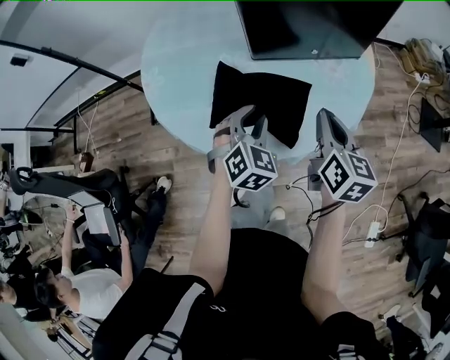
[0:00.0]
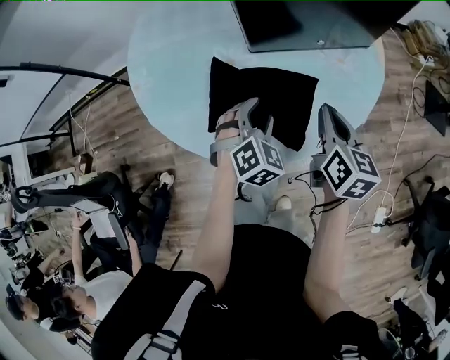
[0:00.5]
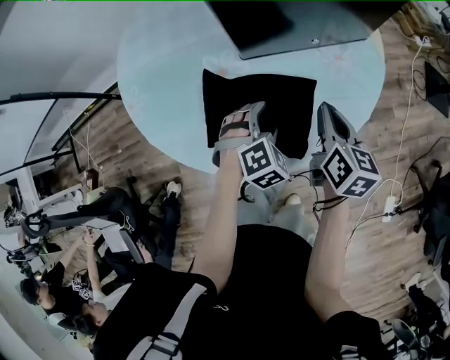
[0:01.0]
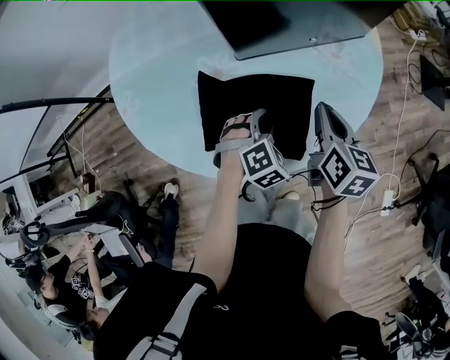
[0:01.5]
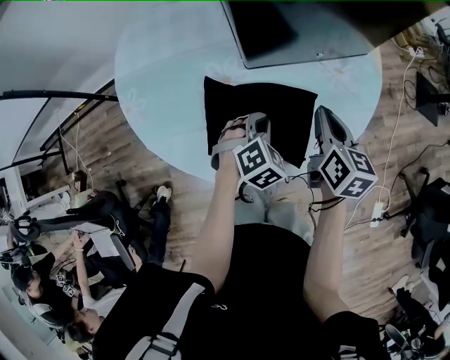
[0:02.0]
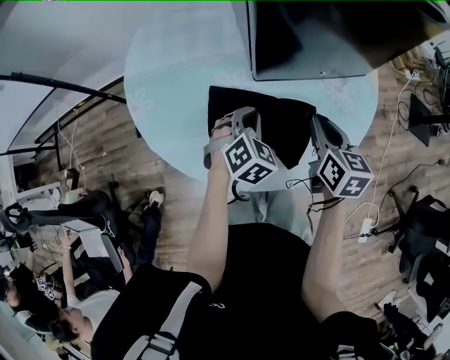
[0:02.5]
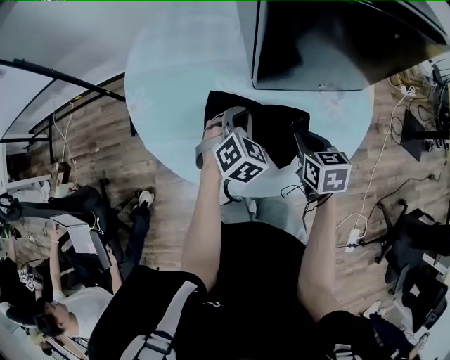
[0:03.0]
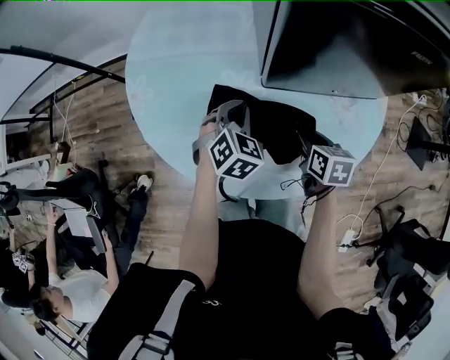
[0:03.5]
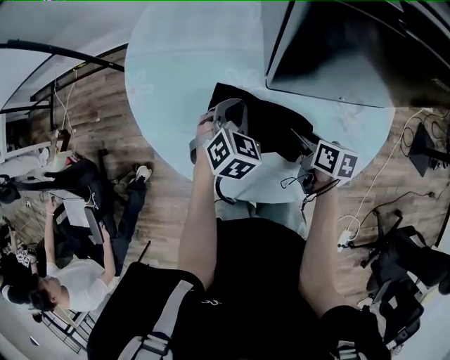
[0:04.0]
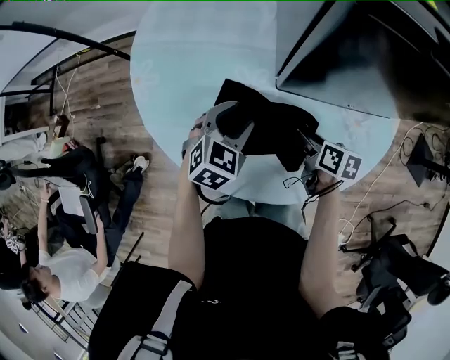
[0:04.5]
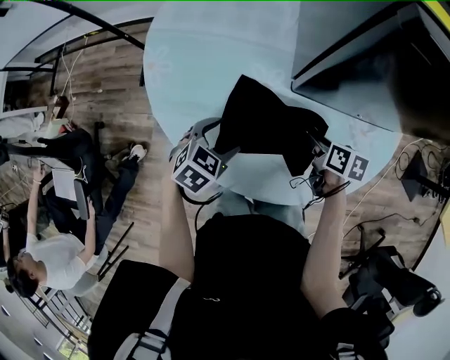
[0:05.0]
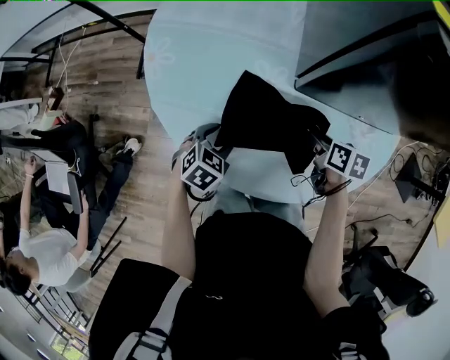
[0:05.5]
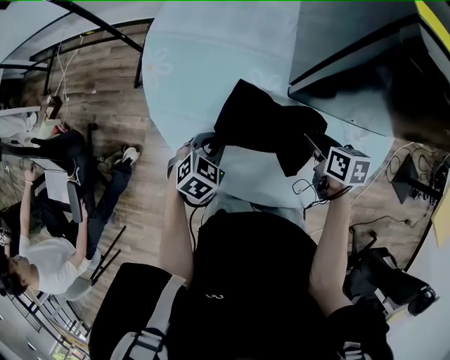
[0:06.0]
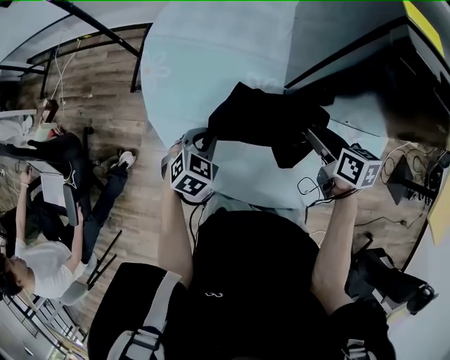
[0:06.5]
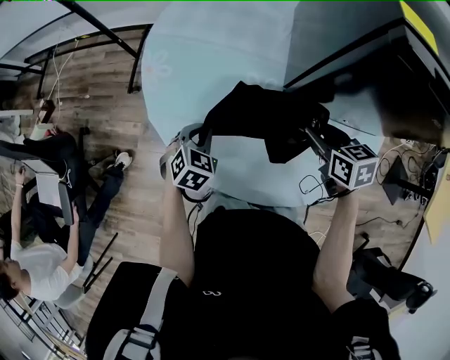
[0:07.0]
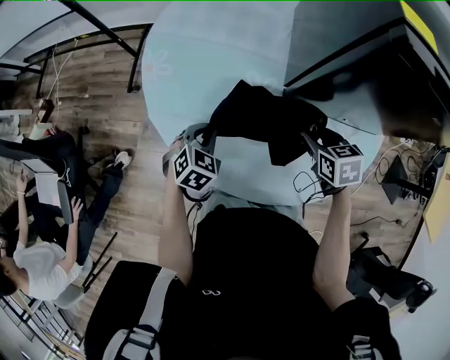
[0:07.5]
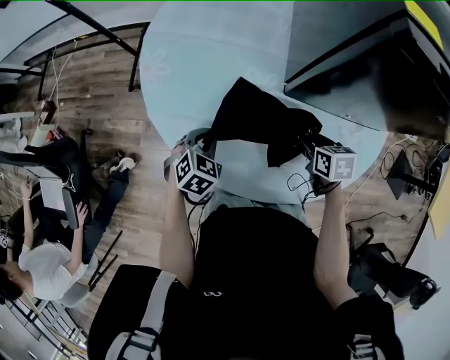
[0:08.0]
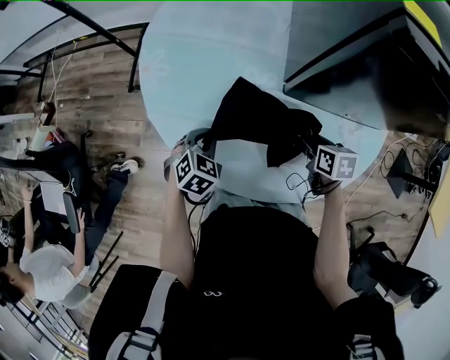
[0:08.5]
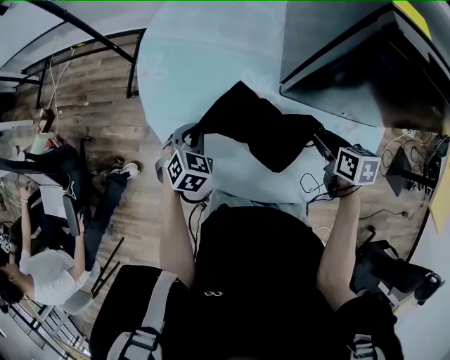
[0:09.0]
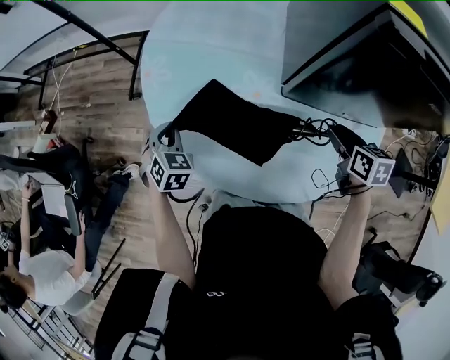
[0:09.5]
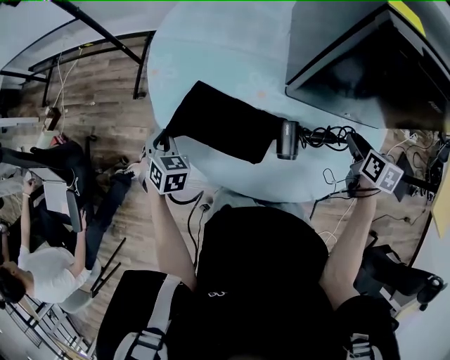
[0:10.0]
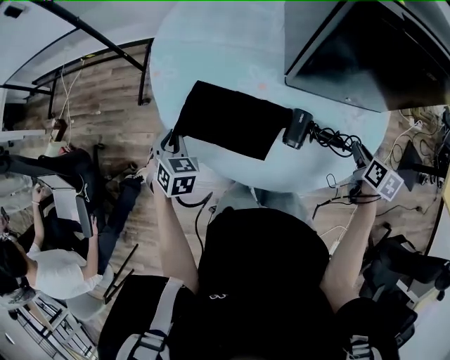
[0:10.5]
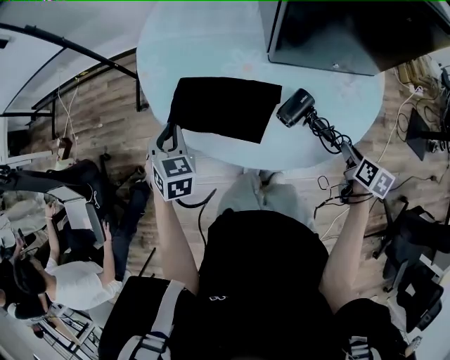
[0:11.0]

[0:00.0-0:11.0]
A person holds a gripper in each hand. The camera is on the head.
0:00.0 to 0:02.0: The left gripper is displaced downward and forward by approximately 10 cm, changes its angle by roughly 20 degrees, and closes up. Meanwhile the right gripper is displaced forward and downward by approximately 10 cm.
0:02.0 to 0:03.5: The left gripper goes about 10 cm forward and to the left, and rotates roughly 30 degrees. The right gripper goes approximately 10 cm downward, turns by about 30 degrees, and opens its fingers.
0:03.5 to 0:05.5: The left gripper is displaced to the left, backward and downward by roughly 20 cm, swivels about 30 degrees, and opens up.
0:05.5 to 0:07.5: The left gripper ends up approximately 5 cm from where it was, and closes its fingers. The right gripper is displaced upward by roughly 5 cm, and rotates roughly 30 degrees.
0:07.5 to 0:09.0: The right gripper swivels some 20 degrees.
0:09.0 to 0:11.0: The right gripper goes about 20 cm backward, and turns by roughly 30 degrees. Meanwhile the left gripper is displaced upward and to the left by about 10 cm.

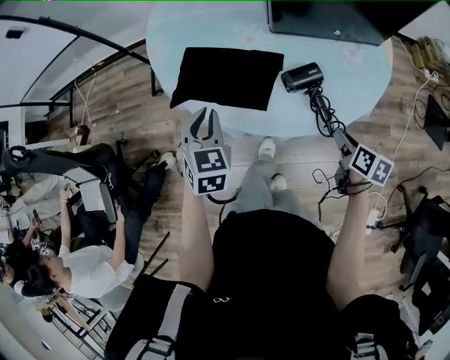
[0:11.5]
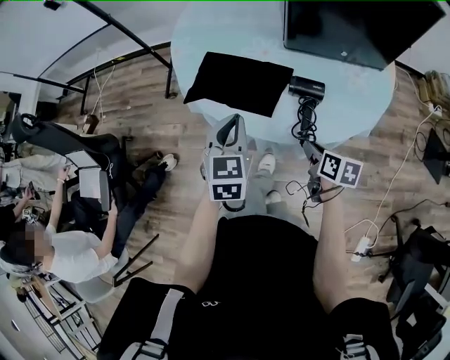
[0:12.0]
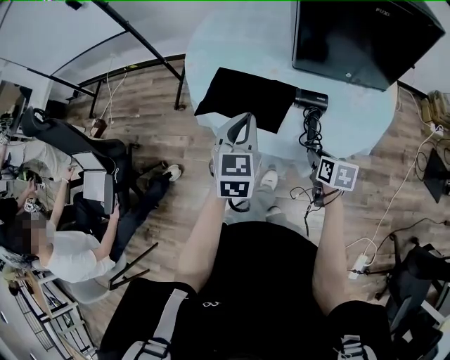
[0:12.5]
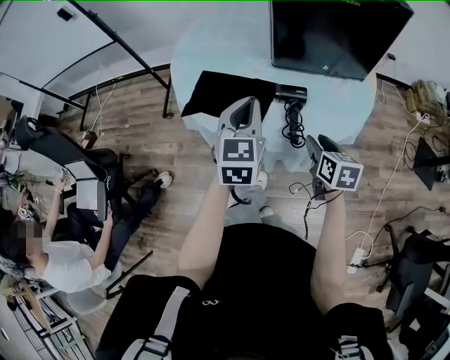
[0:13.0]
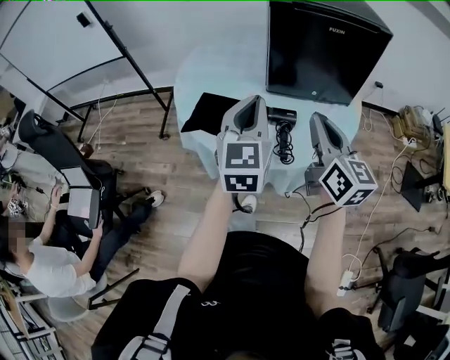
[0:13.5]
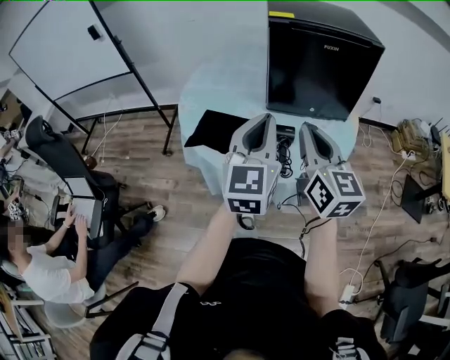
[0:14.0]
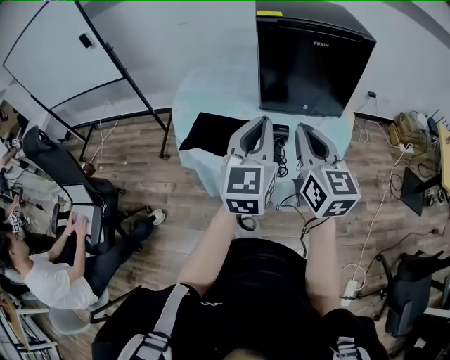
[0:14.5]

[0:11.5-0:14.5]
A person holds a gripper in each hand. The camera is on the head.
0:11.5 to 0:13.0: The right gripper goes roughly 10 cm upward and to the left, and turns by approximately 20 degrees. The left gripper is displaced upward and to the right by roughly 20 cm, and turns by some 20 degrees.
0:13.0 to 0:14.5: The left gripper shifts some 15 cm upward, to the right and backward. Meanwhile the right gripper is displaced upward by about 25 cm, tips its fingers upward by some 40 degrees, and closes its fingers.

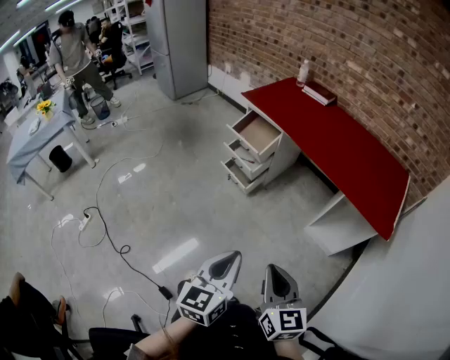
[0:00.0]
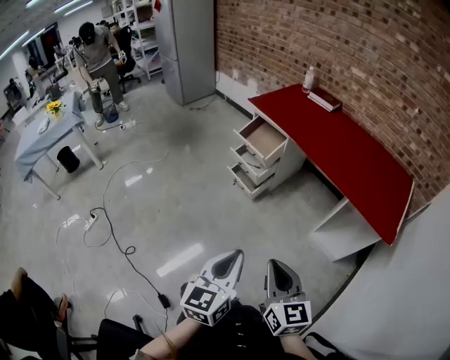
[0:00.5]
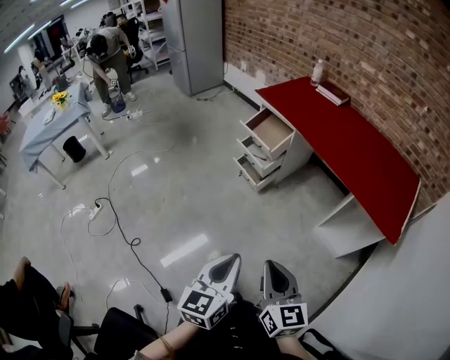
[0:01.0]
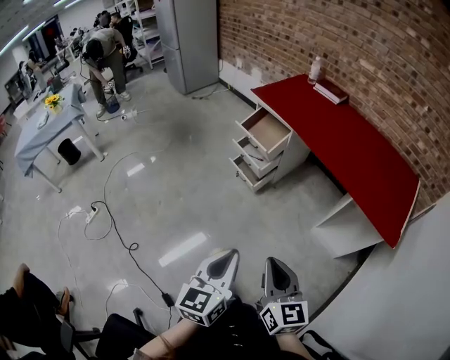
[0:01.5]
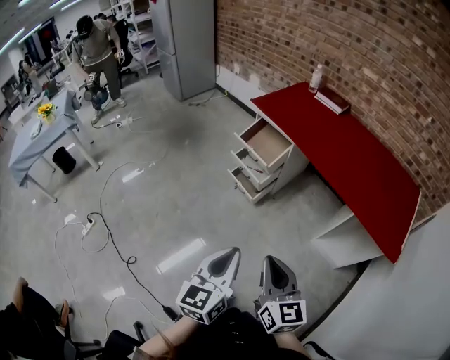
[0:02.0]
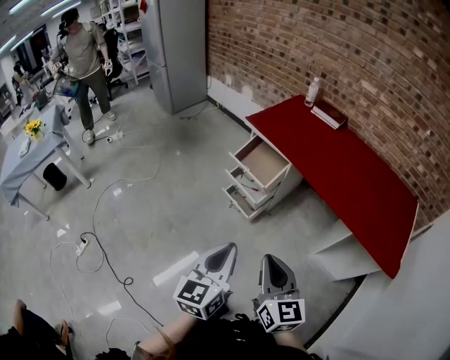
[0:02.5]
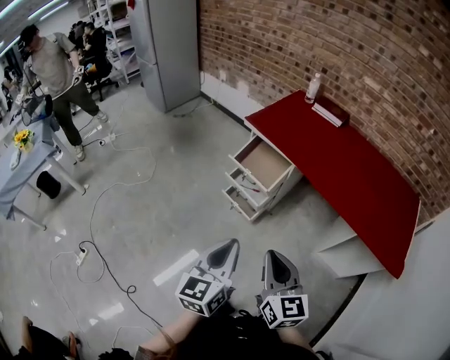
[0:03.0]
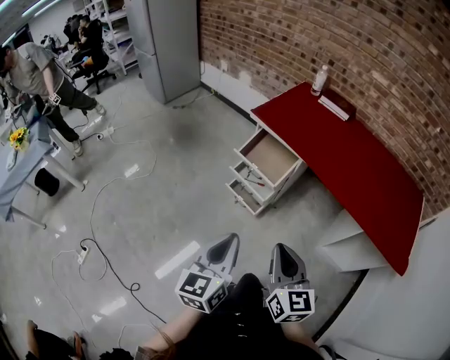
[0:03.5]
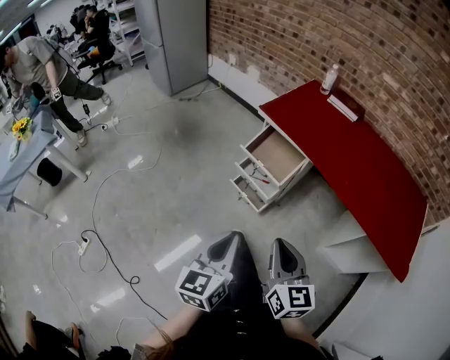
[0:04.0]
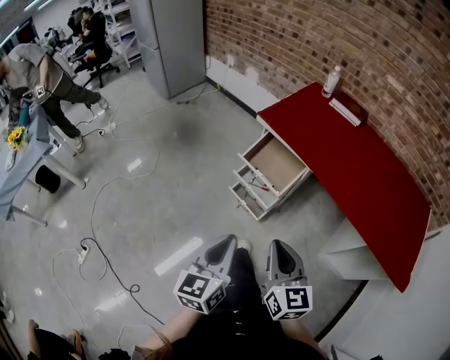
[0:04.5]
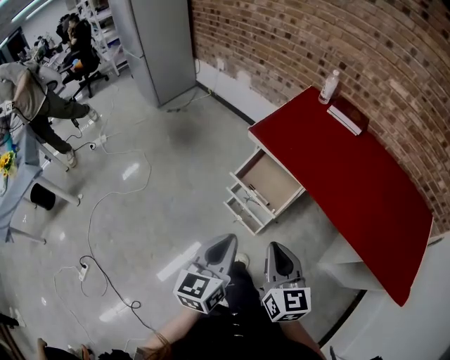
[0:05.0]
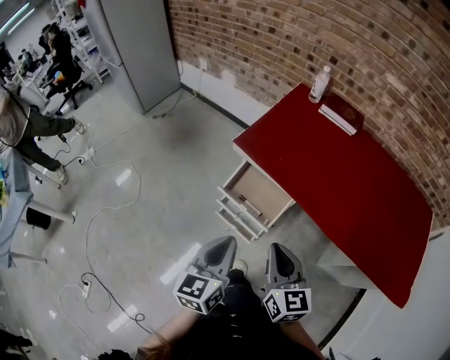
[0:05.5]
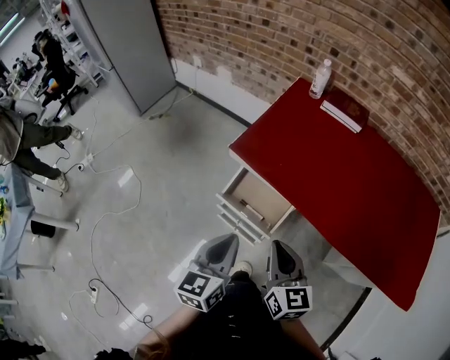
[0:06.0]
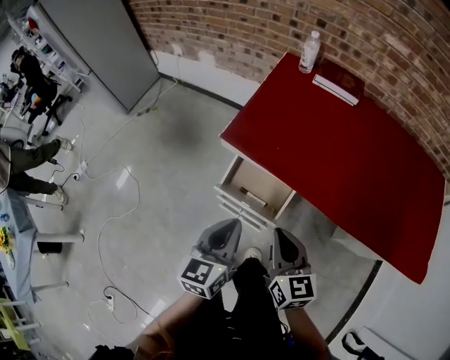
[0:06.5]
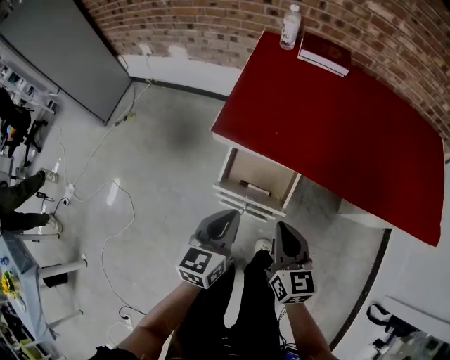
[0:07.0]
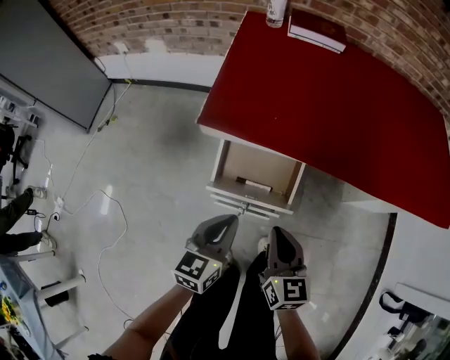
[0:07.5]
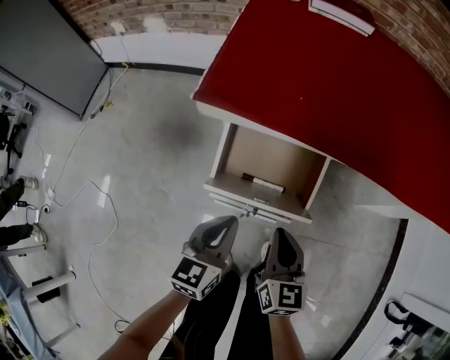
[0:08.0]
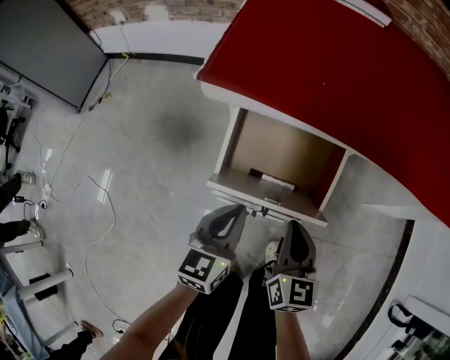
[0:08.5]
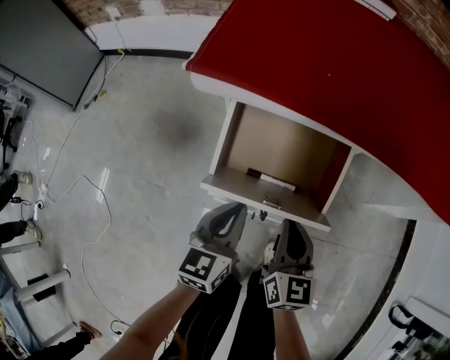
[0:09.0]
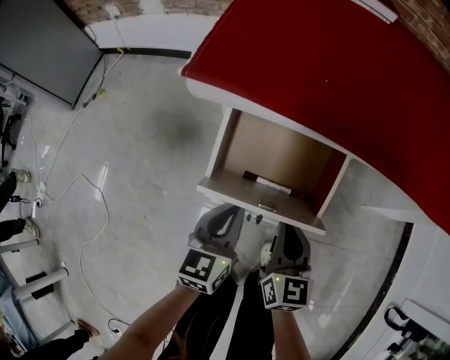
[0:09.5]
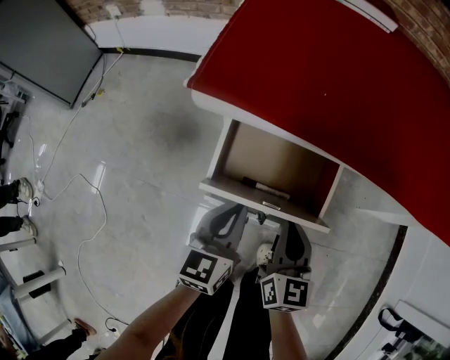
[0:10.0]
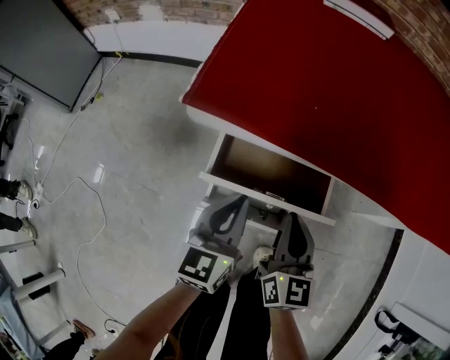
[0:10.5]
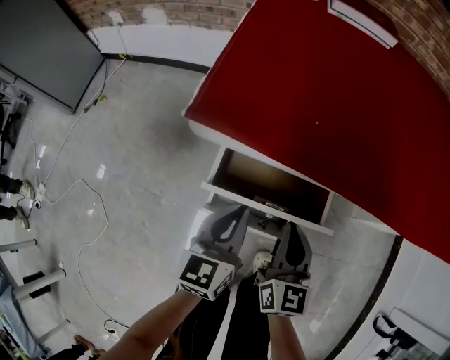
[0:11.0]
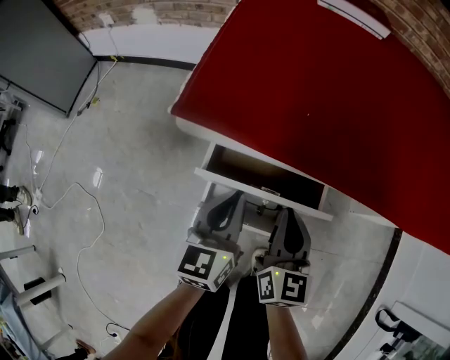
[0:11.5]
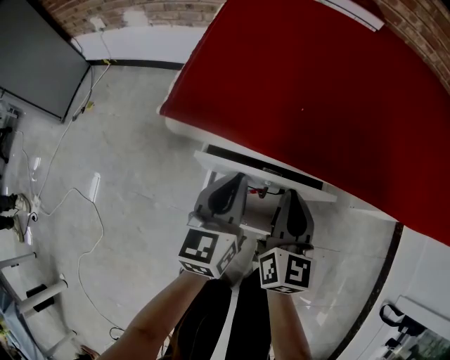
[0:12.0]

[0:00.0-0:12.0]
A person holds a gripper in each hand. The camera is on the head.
0:00.0 to 0:02.0: Both grippers travel together forward, about 10 cm.
0:02.0 to 0:04.0: The two grippers go some 25 cm forward and to the left.
0:04.0 to 0:06.0: The two grippers go roughly 30 cm forward.
0:06.0 to 0:08.0: The two grippers go about 30 cm downward. The right gripper changes its angle by roughly 30 degrees. The left gripper swivels roughly 30 degrees.
0:08.0 to 0:10.0: Both grippers move forward, approximately 5 cm.
0:10.0 to 0:12.0: Both grippers move forward, about 10 cm.
